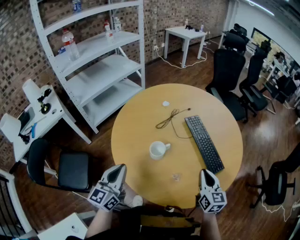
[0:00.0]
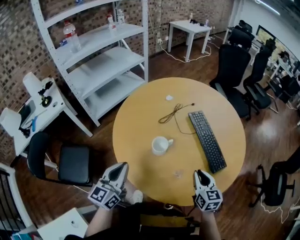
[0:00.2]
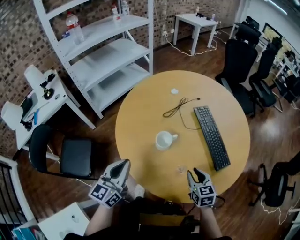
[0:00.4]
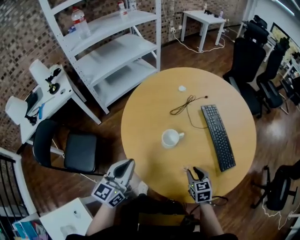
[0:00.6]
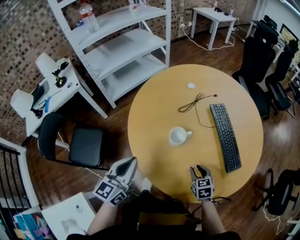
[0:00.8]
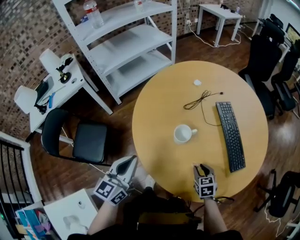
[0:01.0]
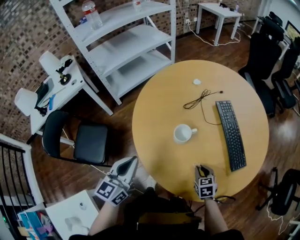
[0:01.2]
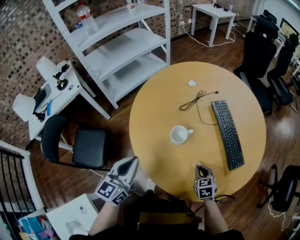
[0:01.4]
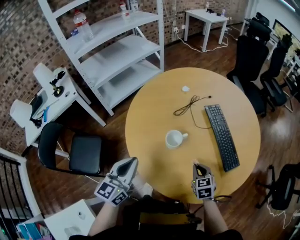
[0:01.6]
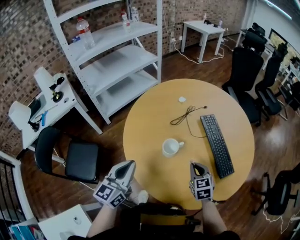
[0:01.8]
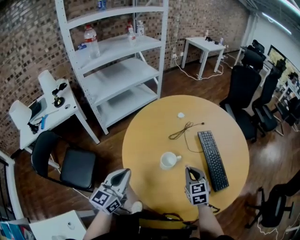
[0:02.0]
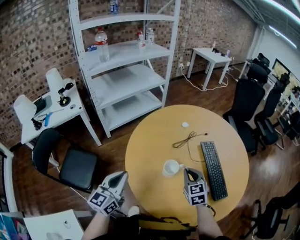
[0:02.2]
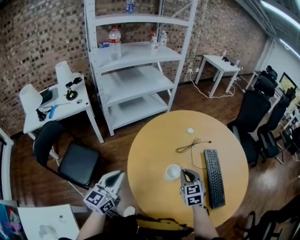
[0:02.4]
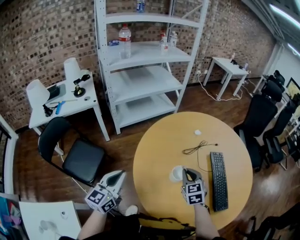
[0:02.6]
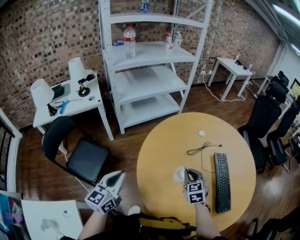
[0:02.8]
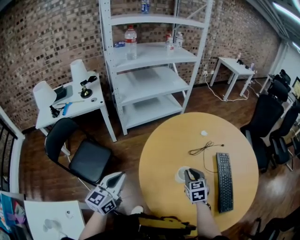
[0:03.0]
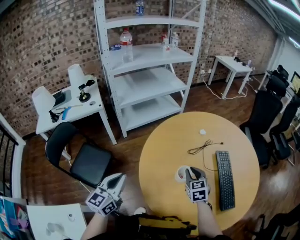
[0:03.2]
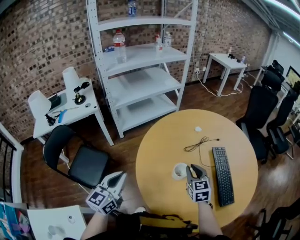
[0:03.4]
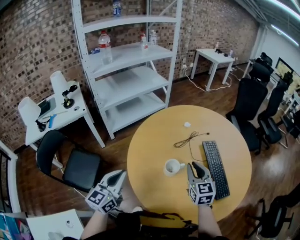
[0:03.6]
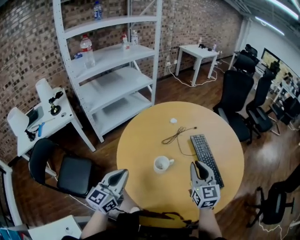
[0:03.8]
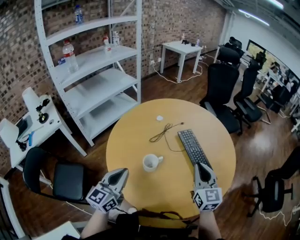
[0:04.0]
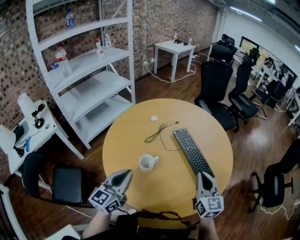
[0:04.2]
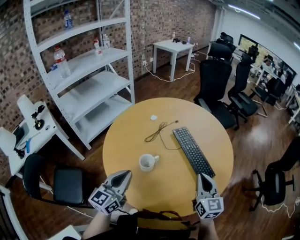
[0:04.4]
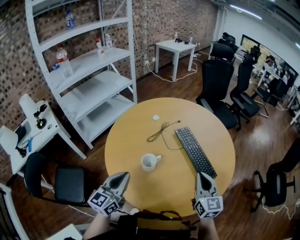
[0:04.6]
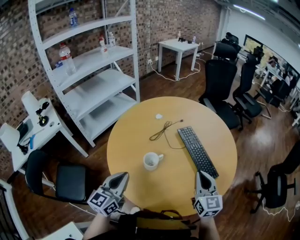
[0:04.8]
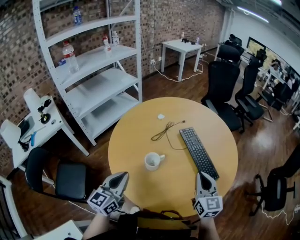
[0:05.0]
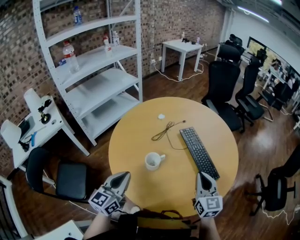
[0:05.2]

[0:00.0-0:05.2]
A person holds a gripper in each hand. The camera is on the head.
0:00.0 to 0:01.8: The right gripper heads to the left, forward and downward, covering some 15 cm, swivels approximately 30 degrees, and opens, then closes again.
0:01.8 to 0:03.4: The right gripper goes some 15 cm forward, to the left and upward, while the left gripper is displaced to the left by some 10 cm.
0:03.4 to 0:05.2: The left gripper heads to the right, covering some 15 cm, and rotates about 20 degrees. The right gripper heads to the right and backward, covering some 20 cm, and changes its angle by approximately 30 degrees.

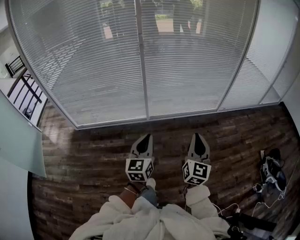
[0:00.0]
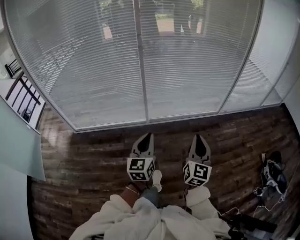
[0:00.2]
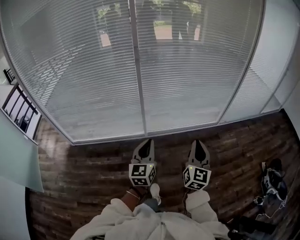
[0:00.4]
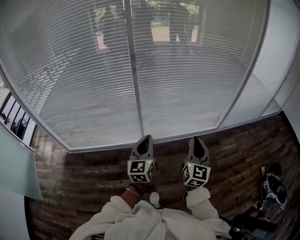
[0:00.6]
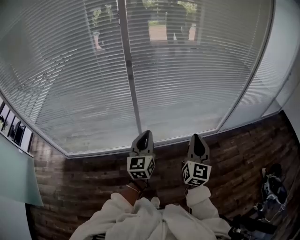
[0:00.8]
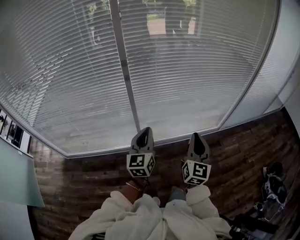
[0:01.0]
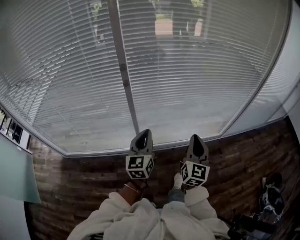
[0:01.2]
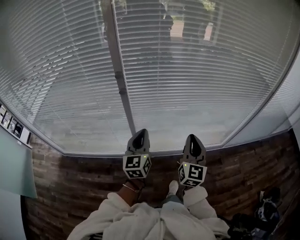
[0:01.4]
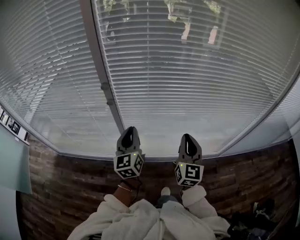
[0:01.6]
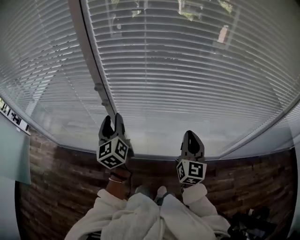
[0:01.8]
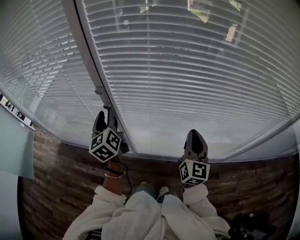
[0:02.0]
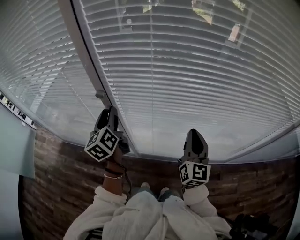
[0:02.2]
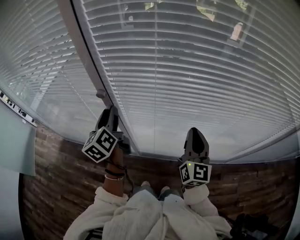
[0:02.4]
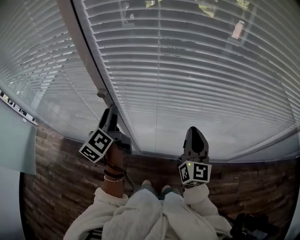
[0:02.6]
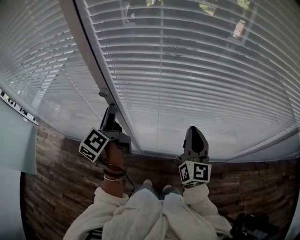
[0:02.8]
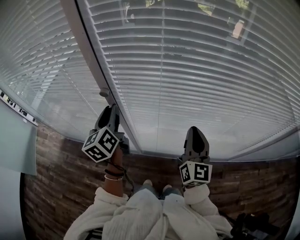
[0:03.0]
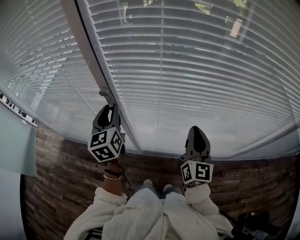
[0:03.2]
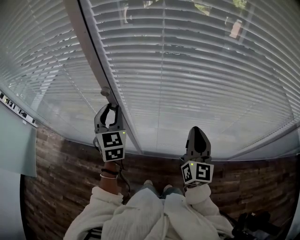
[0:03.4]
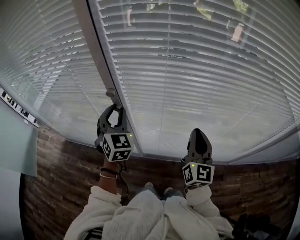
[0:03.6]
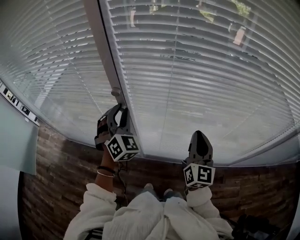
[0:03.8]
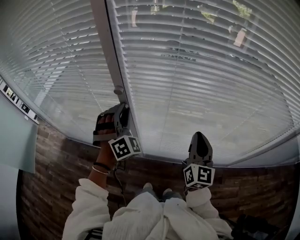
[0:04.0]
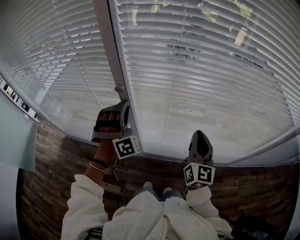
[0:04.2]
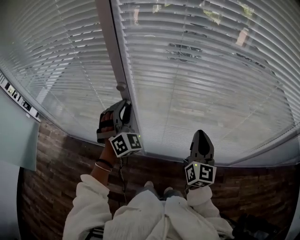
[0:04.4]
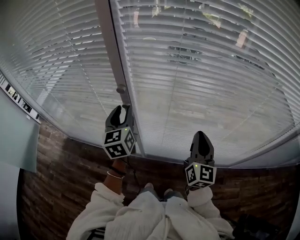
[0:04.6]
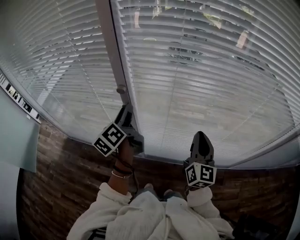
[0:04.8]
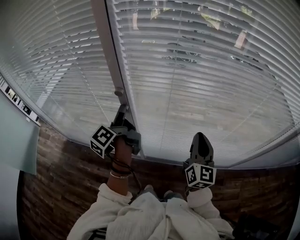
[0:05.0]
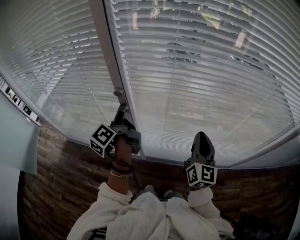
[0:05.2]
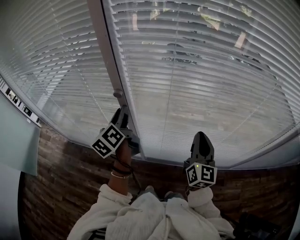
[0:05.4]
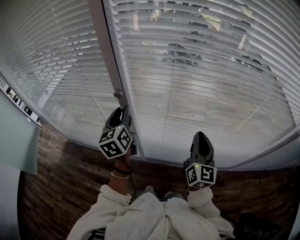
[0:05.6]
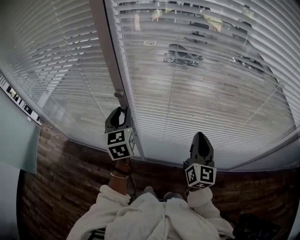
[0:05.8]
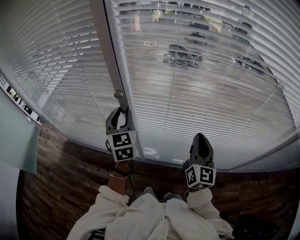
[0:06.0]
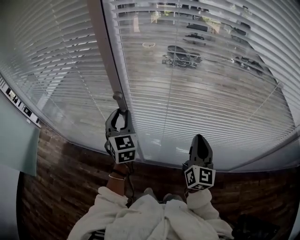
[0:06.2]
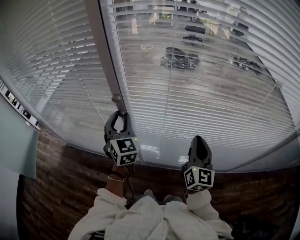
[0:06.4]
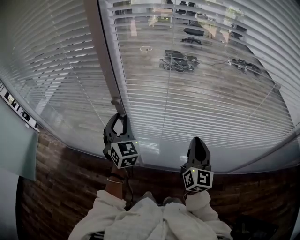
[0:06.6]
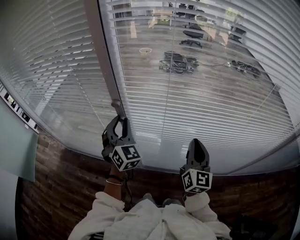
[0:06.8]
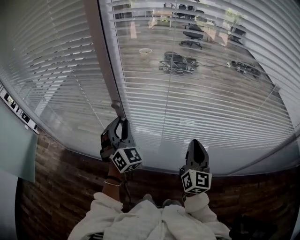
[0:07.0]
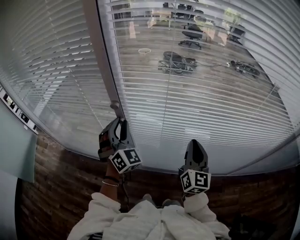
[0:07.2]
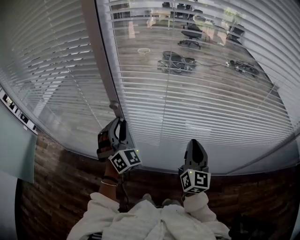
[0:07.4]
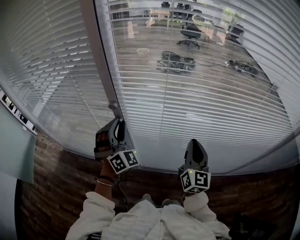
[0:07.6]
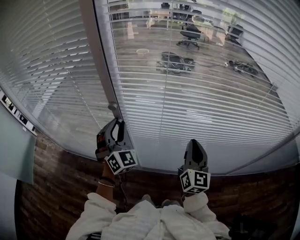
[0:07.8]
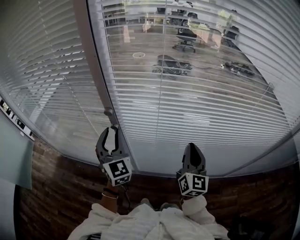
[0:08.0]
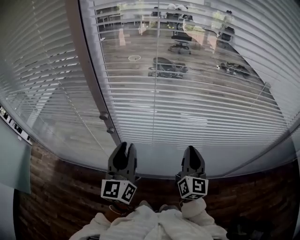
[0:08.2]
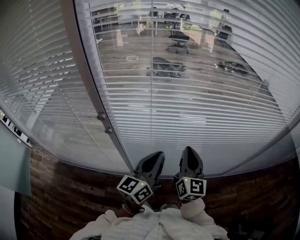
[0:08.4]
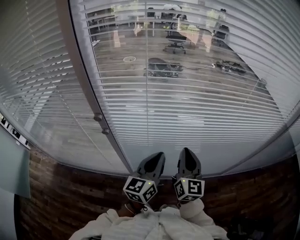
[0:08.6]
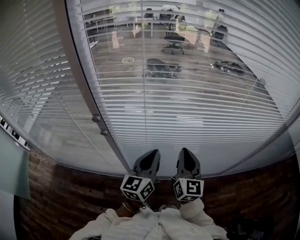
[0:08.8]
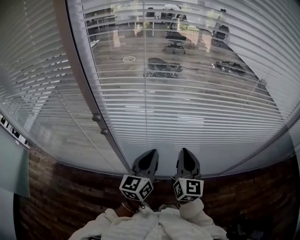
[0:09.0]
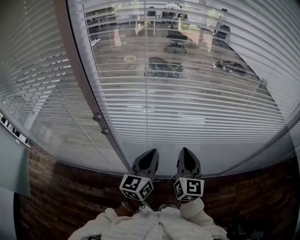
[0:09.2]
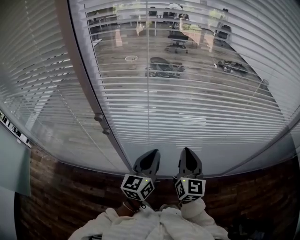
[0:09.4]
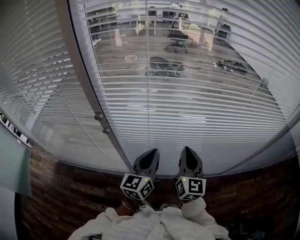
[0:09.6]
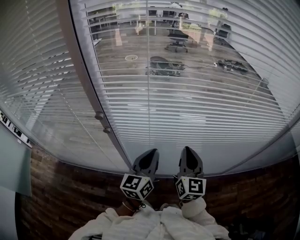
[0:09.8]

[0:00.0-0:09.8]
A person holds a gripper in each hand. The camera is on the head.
0:00.0 to 0:01.4: The two grippers travel together, forward, approximately 60 cm.
0:01.4 to 0:02.8: The right gripper heads forward, covering roughly 20 cm. Meanwhile the left gripper is displaced forward and to the left by some 25 cm, rotates around the line of its fingers by some 40 degrees, counterclockwise from behind, and opens up.
0:02.8 to 0:04.2: The left gripper rolls clockwise, seen from behind, by approximately 140 degrees.
0:04.2 to 0:05.6: The left gripper rotates around the line of its fingers by roughly 110 degrees, counterclockwise from behind.
0:05.6 to 0:07.0: The left gripper twists roughly 60 degrees clockwise, seen from behind.
0:07.0 to 0:08.4: The left gripper is displaced to the right and backward by about 20 cm, twists about 70 degrees counterclockwise, seen from behind, and closes up.
0:08.4 to 0:09.8: The grippers stay close to where they were, moving slightly.

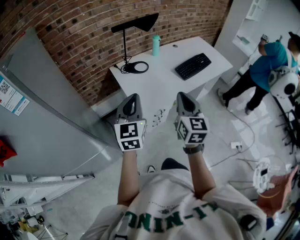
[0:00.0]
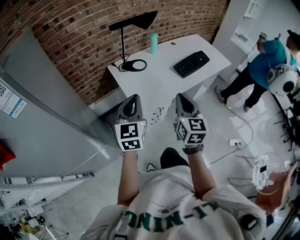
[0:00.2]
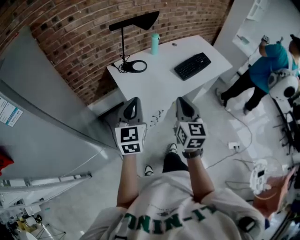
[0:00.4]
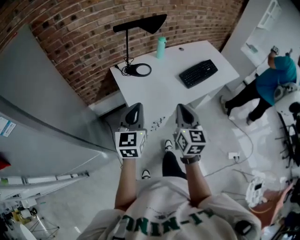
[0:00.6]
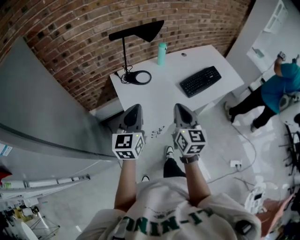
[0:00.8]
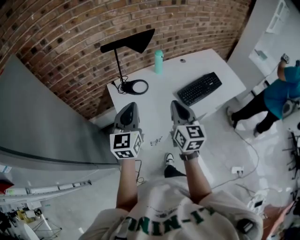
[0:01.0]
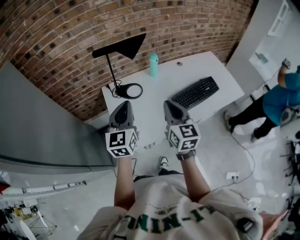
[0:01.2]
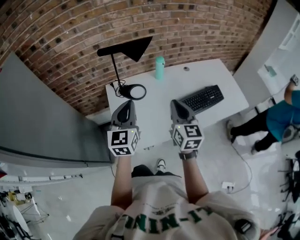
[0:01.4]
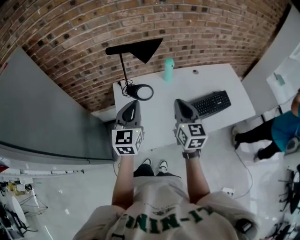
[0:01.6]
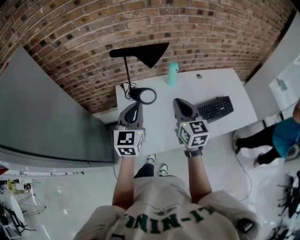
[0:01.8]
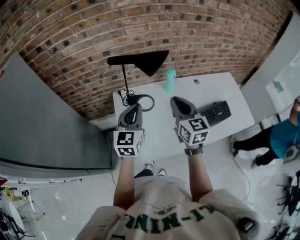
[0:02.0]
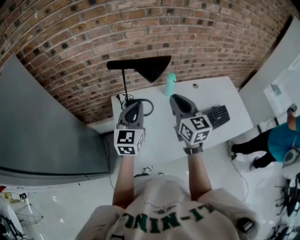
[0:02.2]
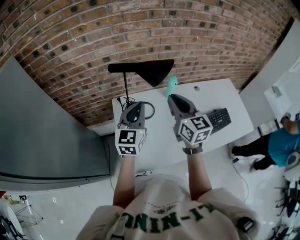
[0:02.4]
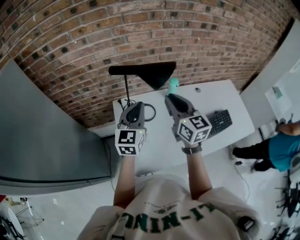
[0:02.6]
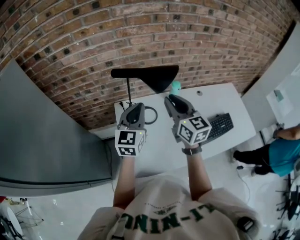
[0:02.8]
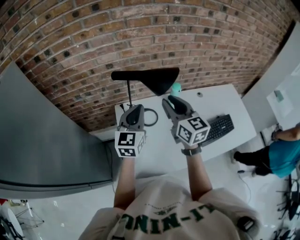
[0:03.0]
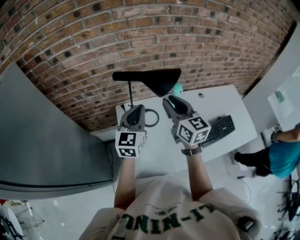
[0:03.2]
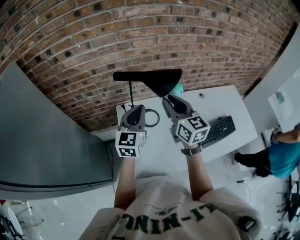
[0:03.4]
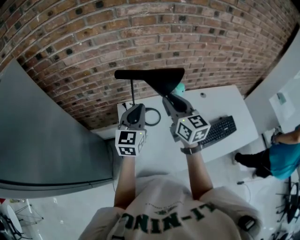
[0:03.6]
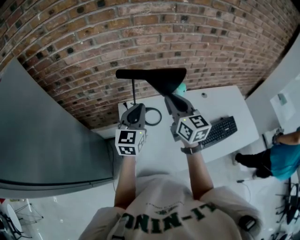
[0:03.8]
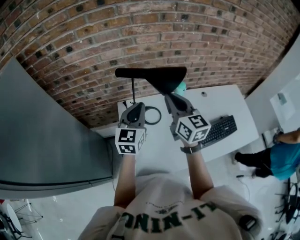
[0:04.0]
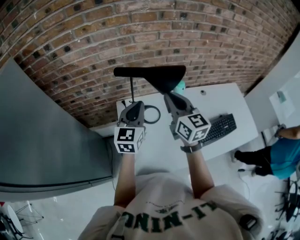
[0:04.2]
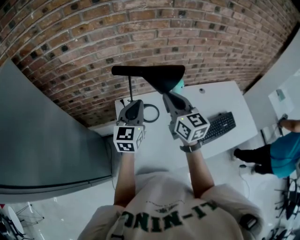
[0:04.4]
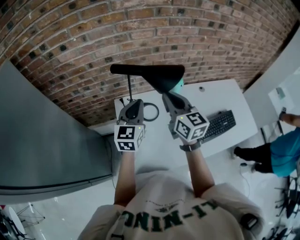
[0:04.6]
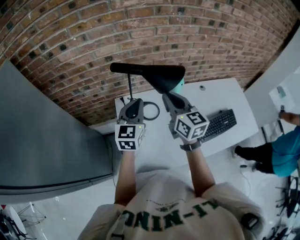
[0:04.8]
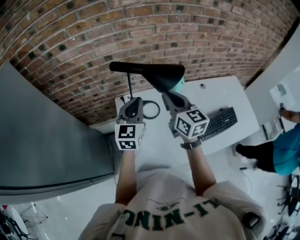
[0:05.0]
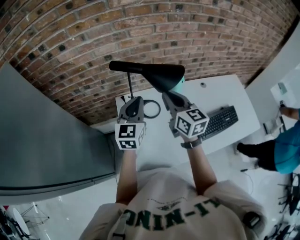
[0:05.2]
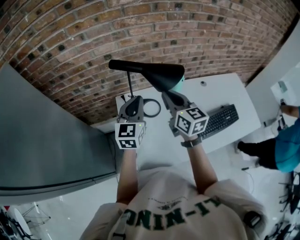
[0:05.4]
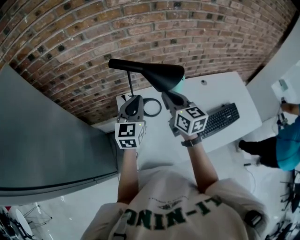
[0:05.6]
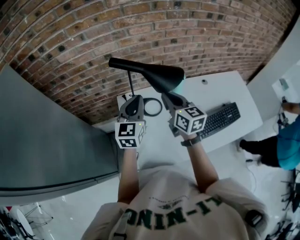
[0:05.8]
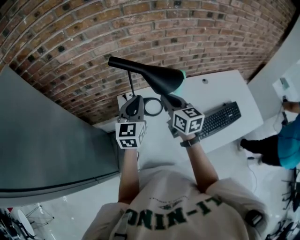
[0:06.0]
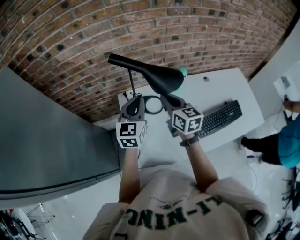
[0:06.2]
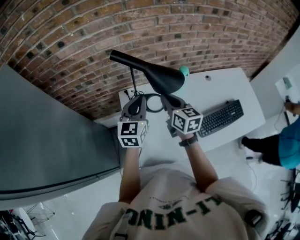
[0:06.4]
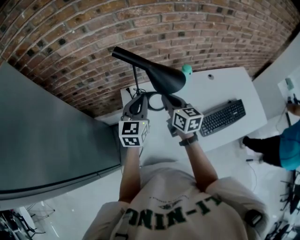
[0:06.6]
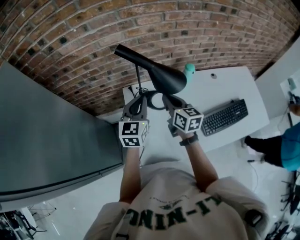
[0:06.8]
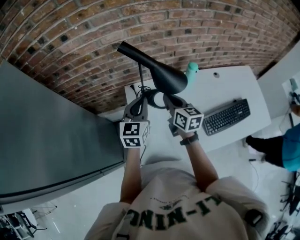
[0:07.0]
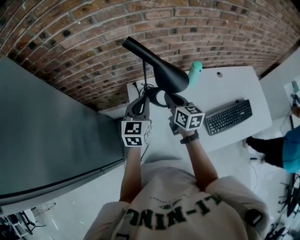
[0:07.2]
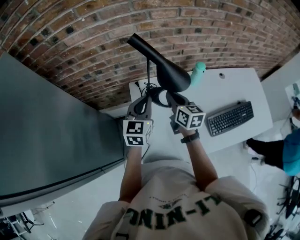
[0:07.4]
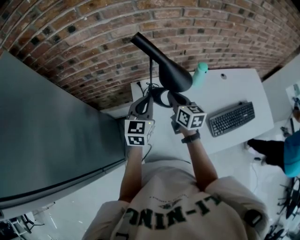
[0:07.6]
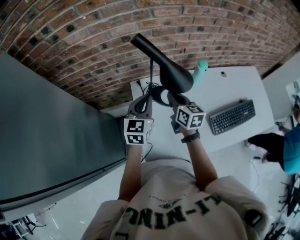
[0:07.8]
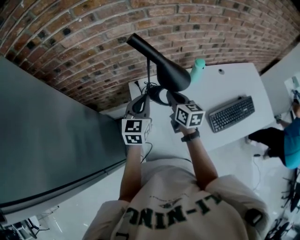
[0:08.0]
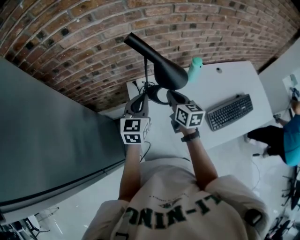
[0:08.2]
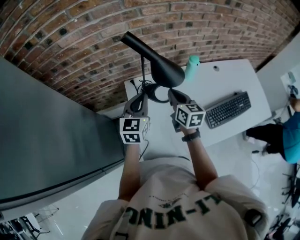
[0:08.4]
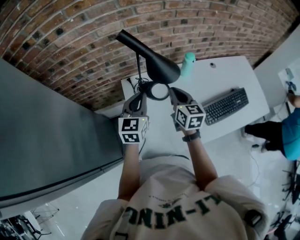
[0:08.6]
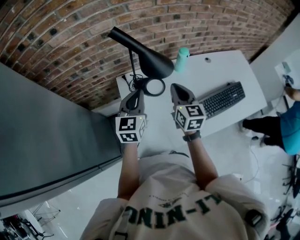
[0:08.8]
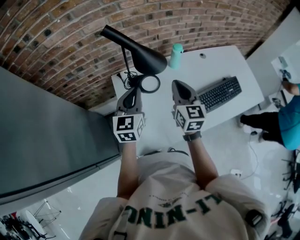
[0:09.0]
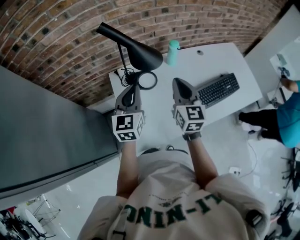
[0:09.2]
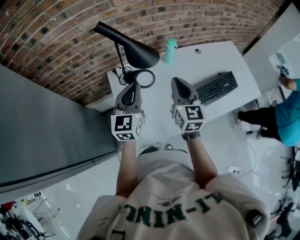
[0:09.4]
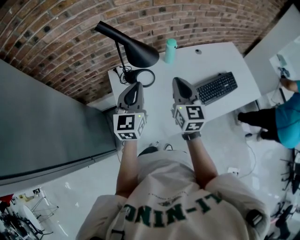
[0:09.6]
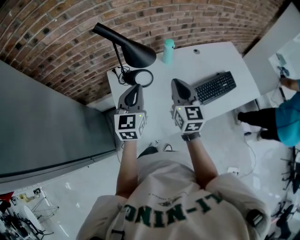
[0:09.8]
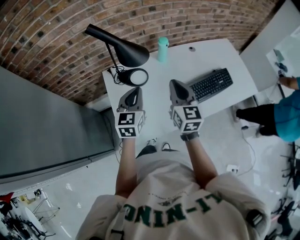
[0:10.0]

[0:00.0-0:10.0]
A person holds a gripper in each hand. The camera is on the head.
0:00.0 to 0:01.4: The right gripper heads forward, covering some 30 cm, and changes its angle by approximately 20 degrees, while the left gripper goes about 30 cm forward and to the right.
0:01.4 to 0:02.8: The right gripper travels forward and to the left by about 20 cm, while the left gripper shifts about 15 cm forward.
0:02.8 to 0:04.2: There are only small adjustments of the grippers.
0:04.2 to 0:05.8: The right gripper heads downward, covering roughly 5 cm.
0:05.8 to 0:07.2: Both grippers travel together downward, about 10 cm.
0:07.2 to 0:08.6: The right gripper changes place by approximately 5 cm.
0:08.6 to 0:10.0: The right gripper goes approximately 15 cm to the right, backward and upward. Meanwhile the left gripper travels to the right and backward by some 15 cm.
